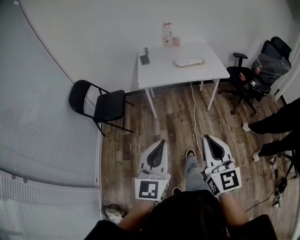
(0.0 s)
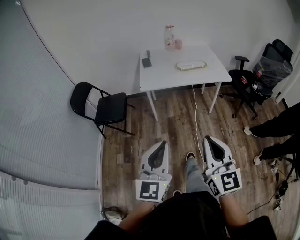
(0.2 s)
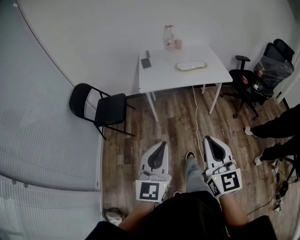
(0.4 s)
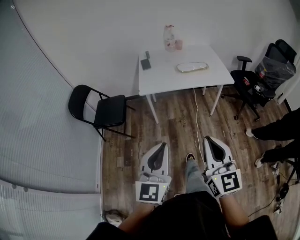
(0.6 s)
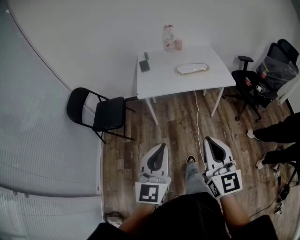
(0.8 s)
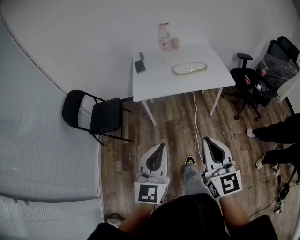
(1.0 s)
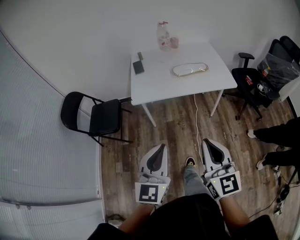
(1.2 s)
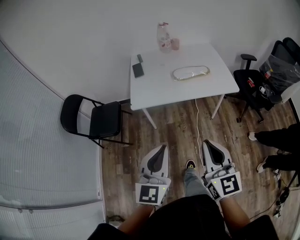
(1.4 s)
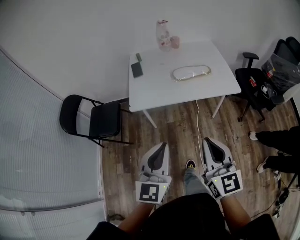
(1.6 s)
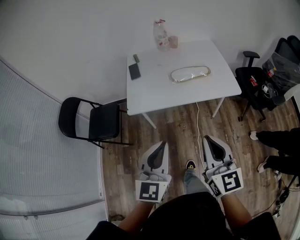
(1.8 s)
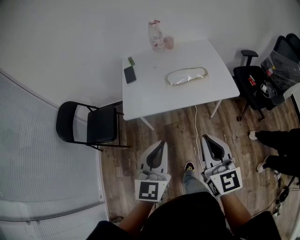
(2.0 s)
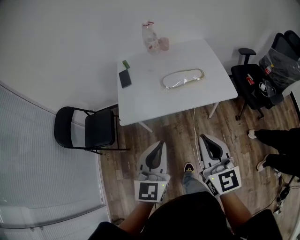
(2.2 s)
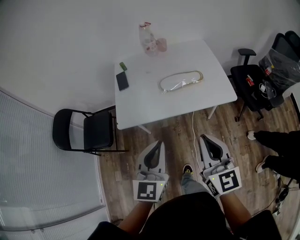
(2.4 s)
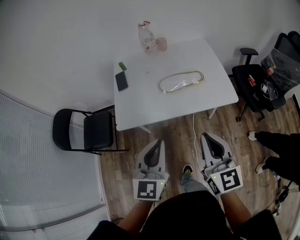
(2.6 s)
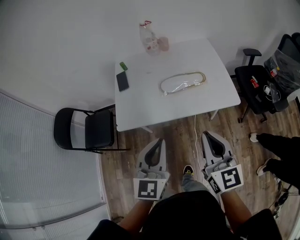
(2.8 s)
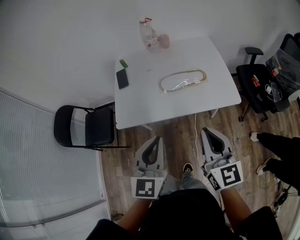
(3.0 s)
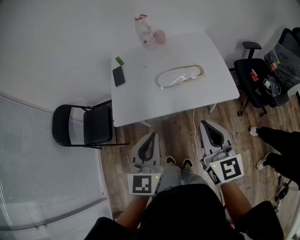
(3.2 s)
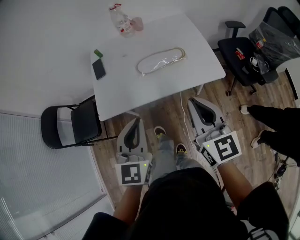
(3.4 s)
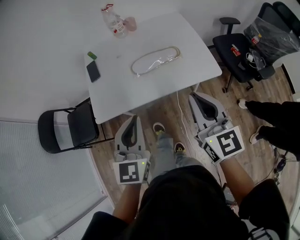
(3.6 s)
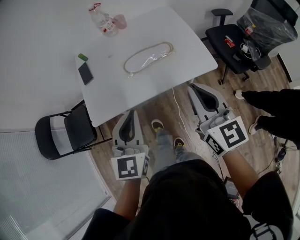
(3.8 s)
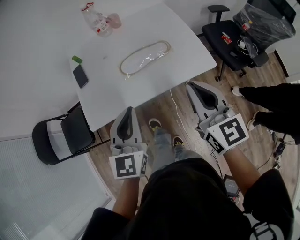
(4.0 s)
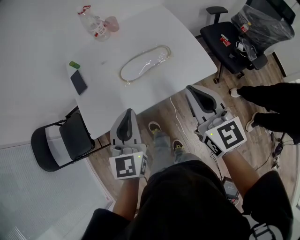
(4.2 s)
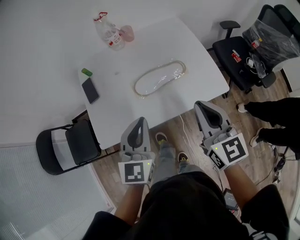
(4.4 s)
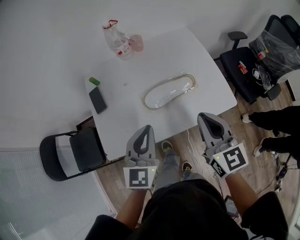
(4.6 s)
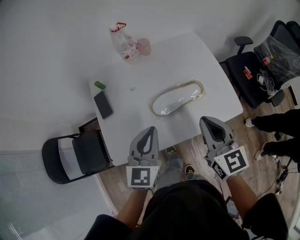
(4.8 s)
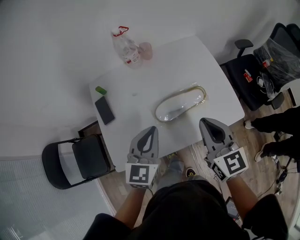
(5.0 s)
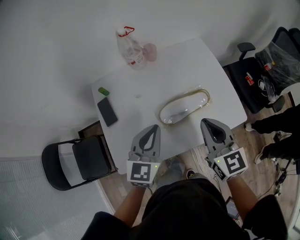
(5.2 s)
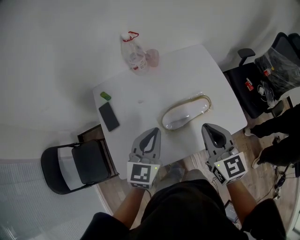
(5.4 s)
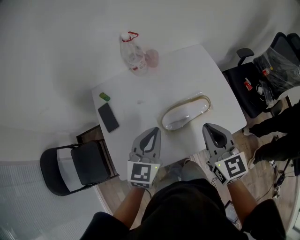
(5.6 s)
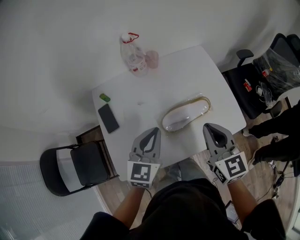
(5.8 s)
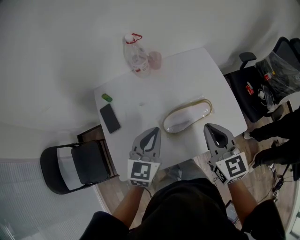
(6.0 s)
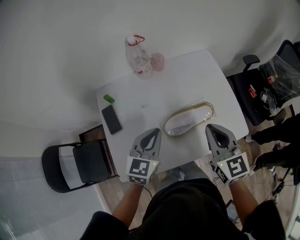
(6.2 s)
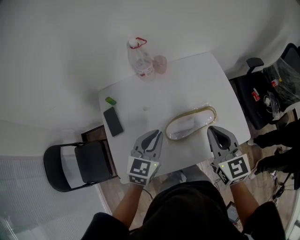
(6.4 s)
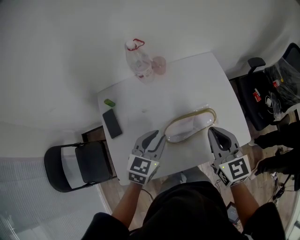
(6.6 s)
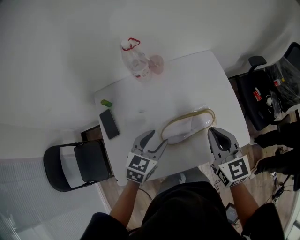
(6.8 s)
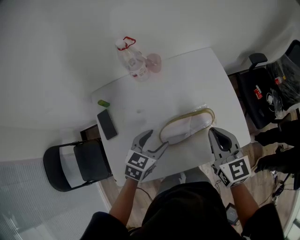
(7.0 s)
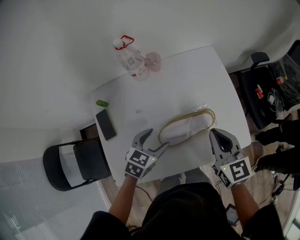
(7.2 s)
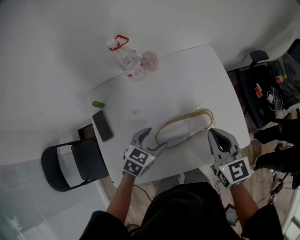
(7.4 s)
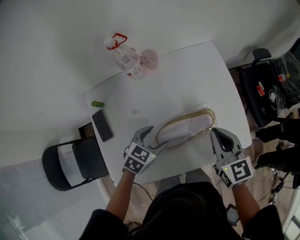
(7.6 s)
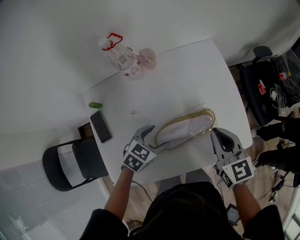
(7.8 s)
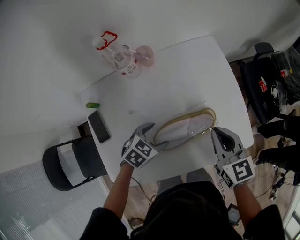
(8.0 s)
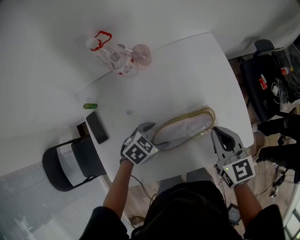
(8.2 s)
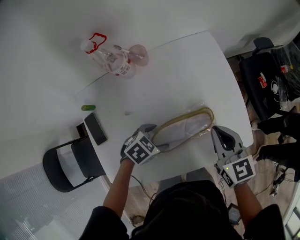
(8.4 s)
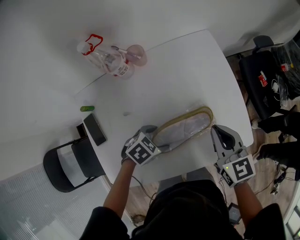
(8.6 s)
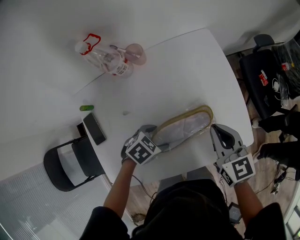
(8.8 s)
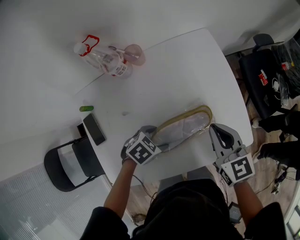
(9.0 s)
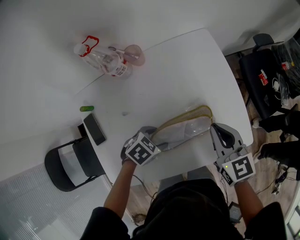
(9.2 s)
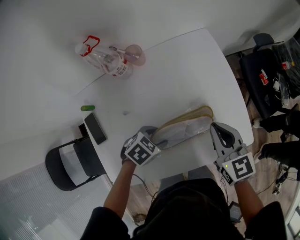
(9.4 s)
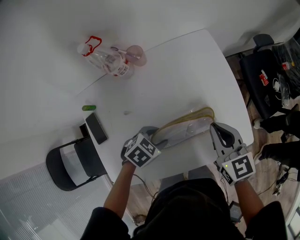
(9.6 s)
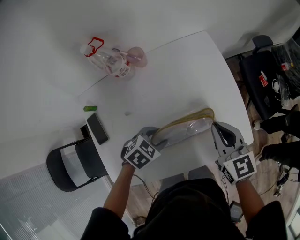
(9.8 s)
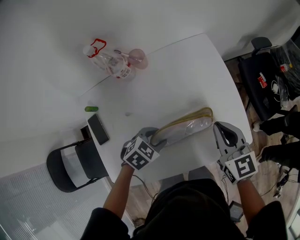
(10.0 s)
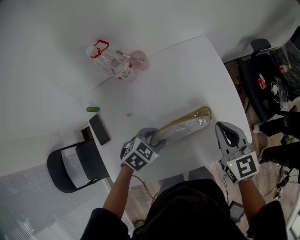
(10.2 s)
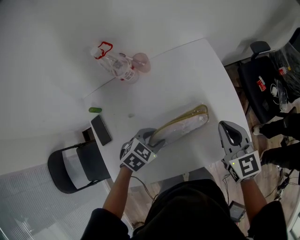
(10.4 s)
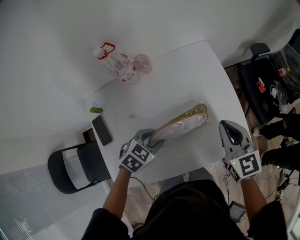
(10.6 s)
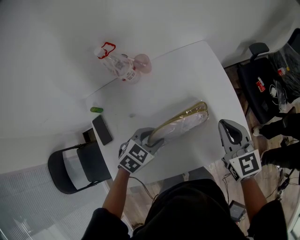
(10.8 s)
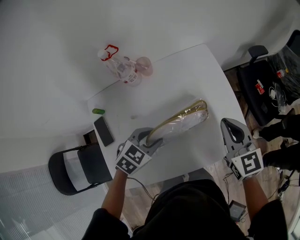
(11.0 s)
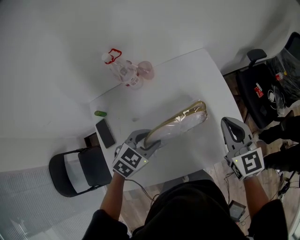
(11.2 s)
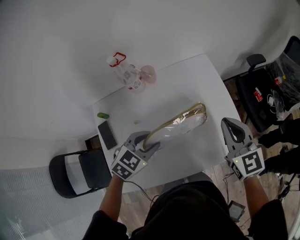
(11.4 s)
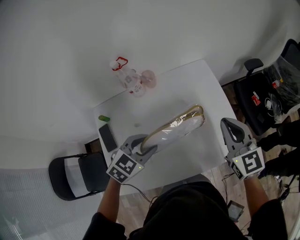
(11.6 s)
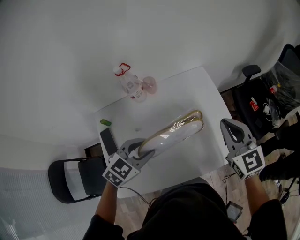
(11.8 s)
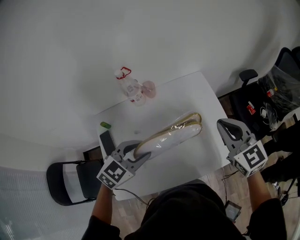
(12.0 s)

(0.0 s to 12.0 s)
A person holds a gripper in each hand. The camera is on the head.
0.0 s - 1.6 s: Both grippers travel together forward, about 30 cm.
1.6 s - 3.0 s: Both grippers travel together forward and to the right, approximately 20 cm.
3.0 s - 4.4 s: Both grippers travel together forward, about 15 cm.
4.4 s - 6.0 s: Both grippers move forward and to the left, roughly 15 cm.
6.0 s - 7.6 s: The left gripper is displaced downward and forward by approximately 15 cm, turns by about 40 degrees, and opens its fingers. The right gripper travels forward, downward and to the right by roughly 15 cm.
7.6 s - 9.0 s: The right gripper changes place by about 5 cm; the left gripper shifts about 5 cm downward, and rotates some 30 degrees.
9.0 s - 10.4 s: The right gripper moves approximately 5 cm. Meanwhile the left gripper heads upward, covering about 5 cm, and closes up.
10.4 s - 12.0 s: The two grippers go about 15 cm upward. The left gripper rotates about 30 degrees.

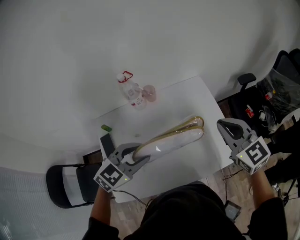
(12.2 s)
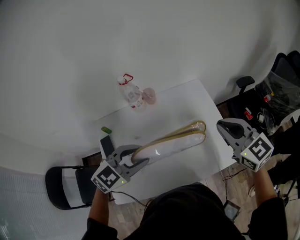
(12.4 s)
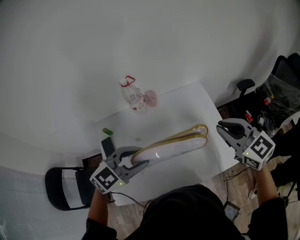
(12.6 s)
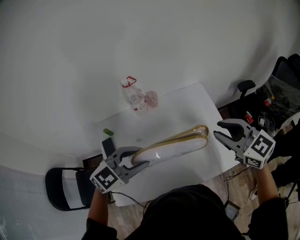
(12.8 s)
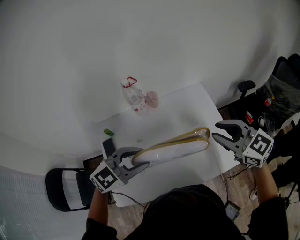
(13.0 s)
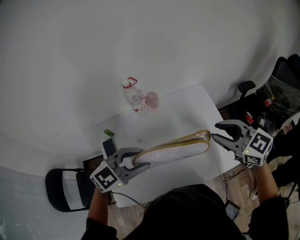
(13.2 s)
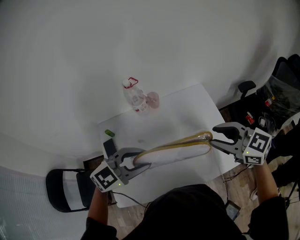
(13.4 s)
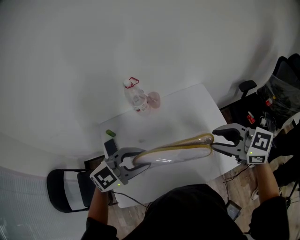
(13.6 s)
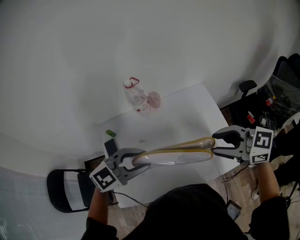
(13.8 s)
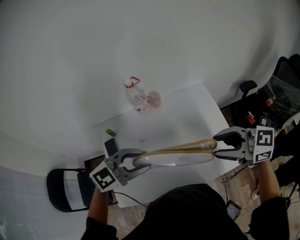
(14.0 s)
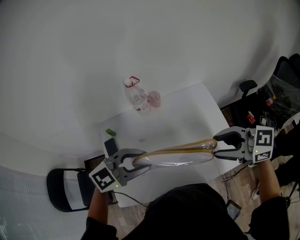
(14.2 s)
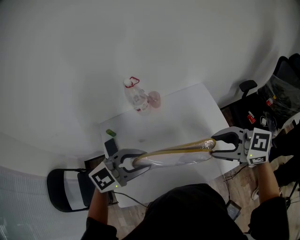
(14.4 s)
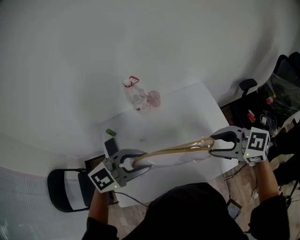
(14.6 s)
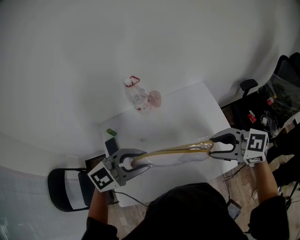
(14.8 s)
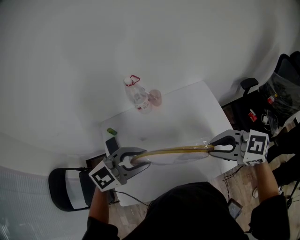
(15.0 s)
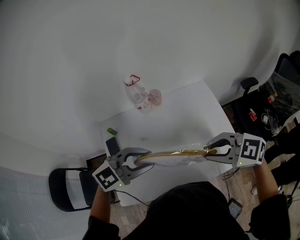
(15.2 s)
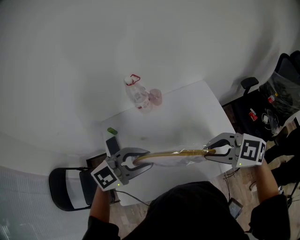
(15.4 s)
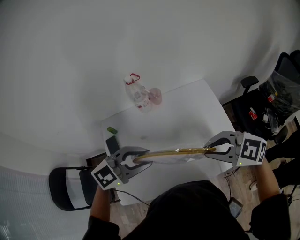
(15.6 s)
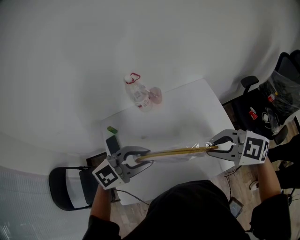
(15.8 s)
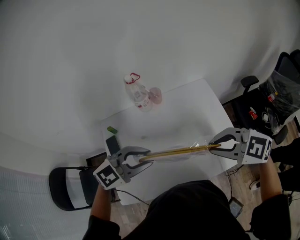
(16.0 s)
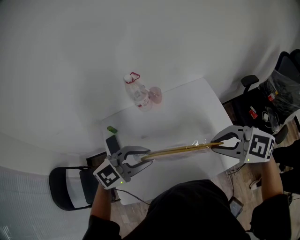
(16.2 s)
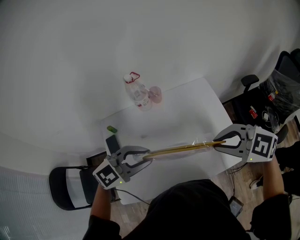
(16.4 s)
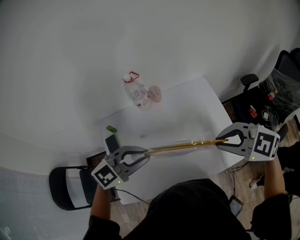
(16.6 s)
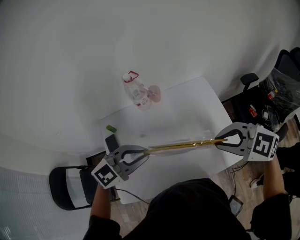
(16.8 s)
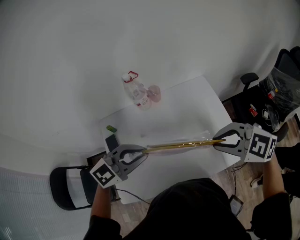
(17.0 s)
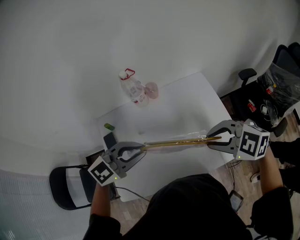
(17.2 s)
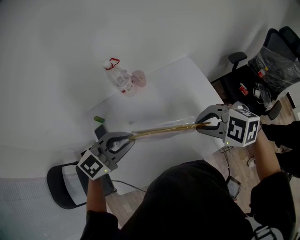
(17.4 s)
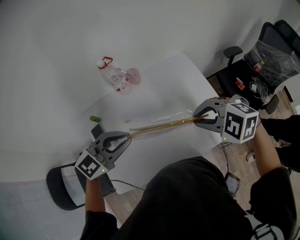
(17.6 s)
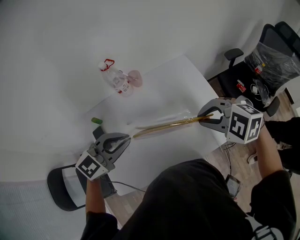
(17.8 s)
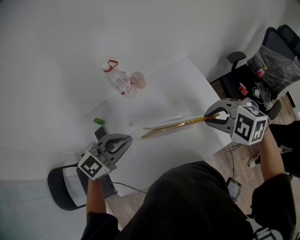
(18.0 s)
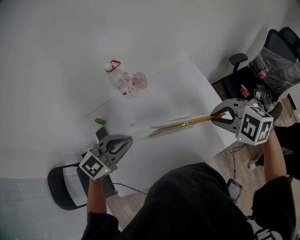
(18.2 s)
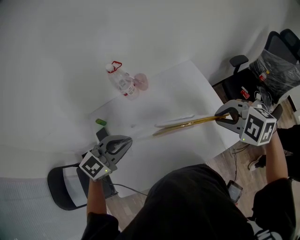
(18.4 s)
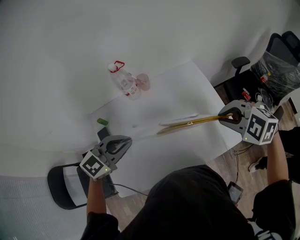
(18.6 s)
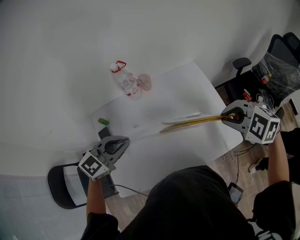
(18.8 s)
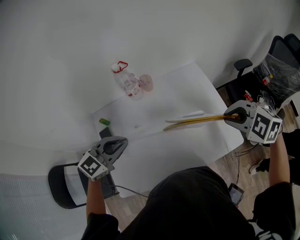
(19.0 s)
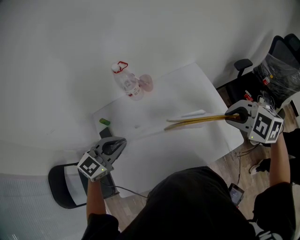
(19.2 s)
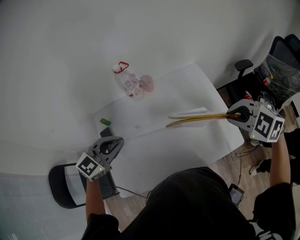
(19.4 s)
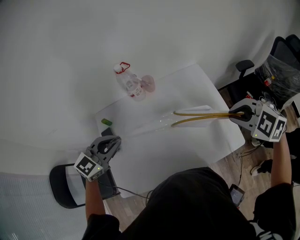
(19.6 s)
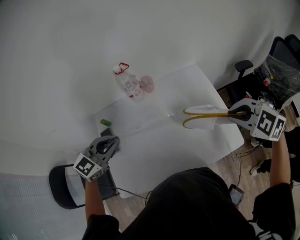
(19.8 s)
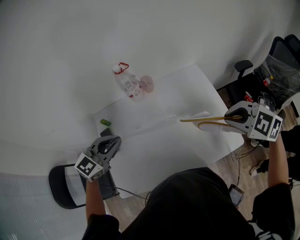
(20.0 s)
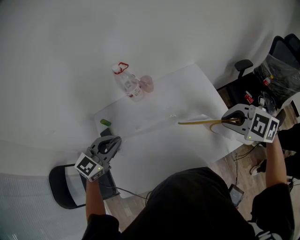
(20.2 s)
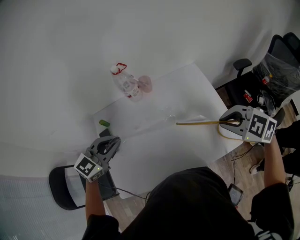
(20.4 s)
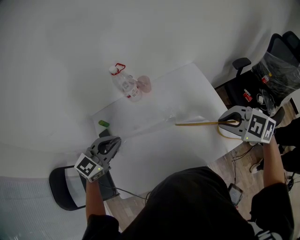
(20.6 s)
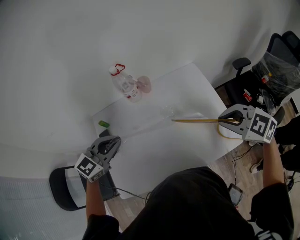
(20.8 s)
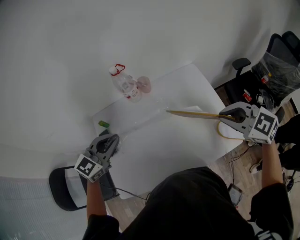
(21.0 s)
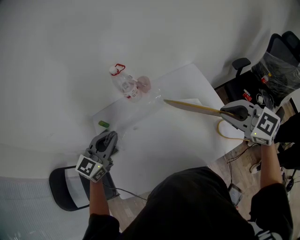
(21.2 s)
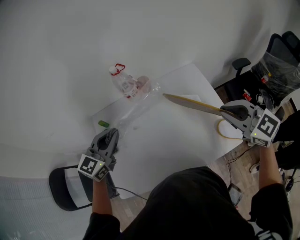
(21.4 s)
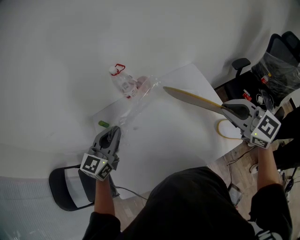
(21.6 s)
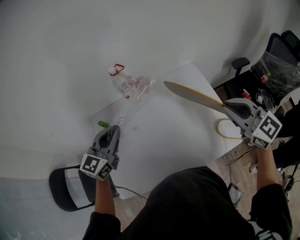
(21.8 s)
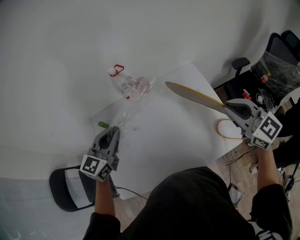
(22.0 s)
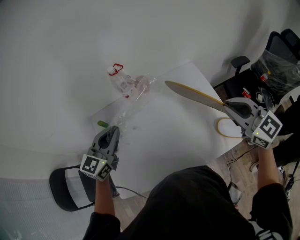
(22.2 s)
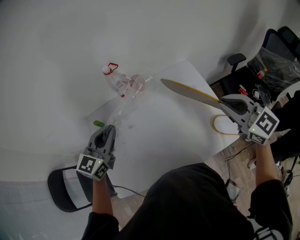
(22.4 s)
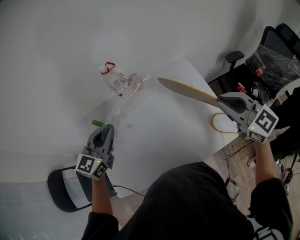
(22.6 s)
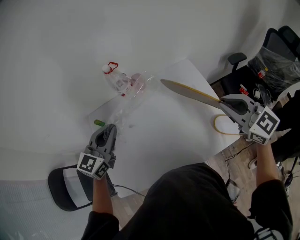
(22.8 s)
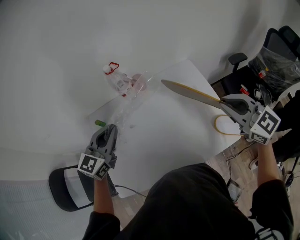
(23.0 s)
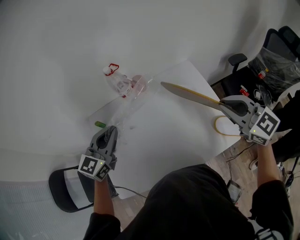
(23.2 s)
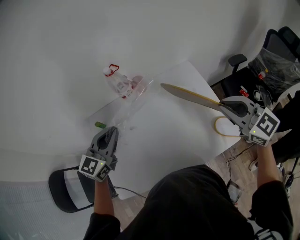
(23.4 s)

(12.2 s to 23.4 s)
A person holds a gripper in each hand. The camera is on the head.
12.2 s - 13.8 s: The right gripper changes place by approximately 5 cm, turns by about 40 degrees, and opens.
13.8 s - 15.4 s: The right gripper moves about 5 cm, rotates roughly 20 degrees, and closes its fingers.
15.4 s - 17.0 s: The grippers move only a little.
17.0 s - 18.6 s: The right gripper moves some 5 cm, and turns by roughly 20 degrees.
18.6 s - 20.2 s: The left gripper moves to the left, about 5 cm.
20.2 s - 21.8 s: The right gripper shifts about 5 cm upward, and tips its fingers upward by some 40 degrees. Meanwhile the left gripper changes its angle by roughly 20 degrees.
21.8 s - 23.4 s: Both grippers stay about where they are.

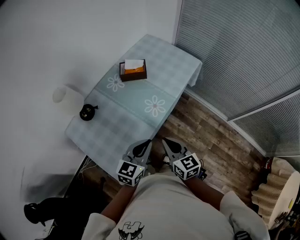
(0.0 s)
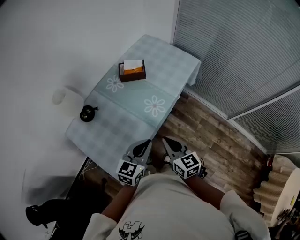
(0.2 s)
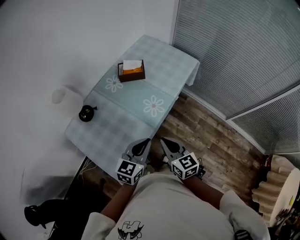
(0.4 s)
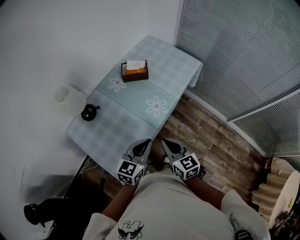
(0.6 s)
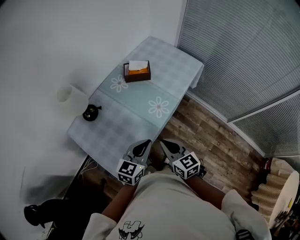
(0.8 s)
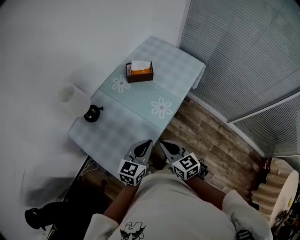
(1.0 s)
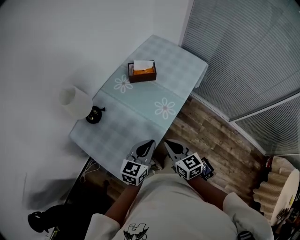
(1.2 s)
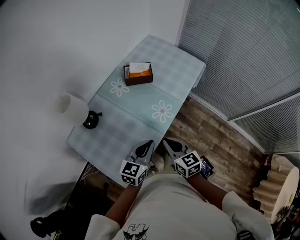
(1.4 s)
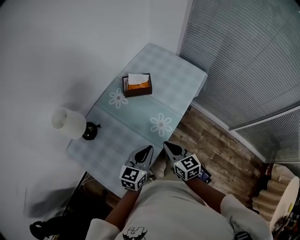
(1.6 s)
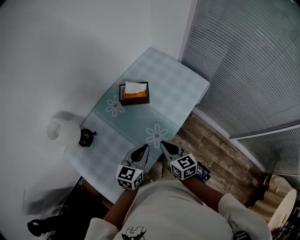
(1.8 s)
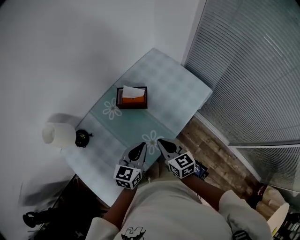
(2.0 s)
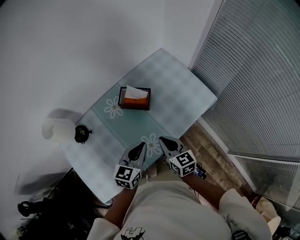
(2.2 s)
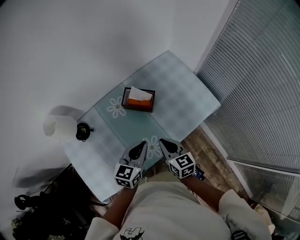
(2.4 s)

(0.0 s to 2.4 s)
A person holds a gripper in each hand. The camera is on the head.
0.0 s - 1.2 s: The grippers both shift to the left by some 5 cm.
1.2 s - 2.4 s: The right gripper goes some 30 cm forward and to the right. The left gripper travels forward by some 25 cm, and changes its angle by roughly 20 degrees.
